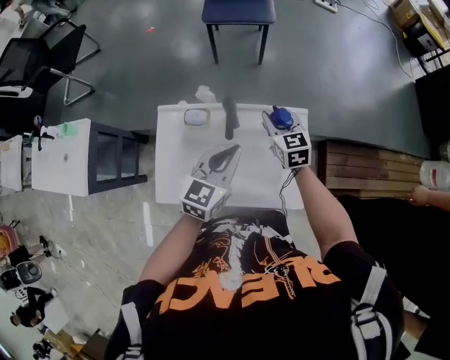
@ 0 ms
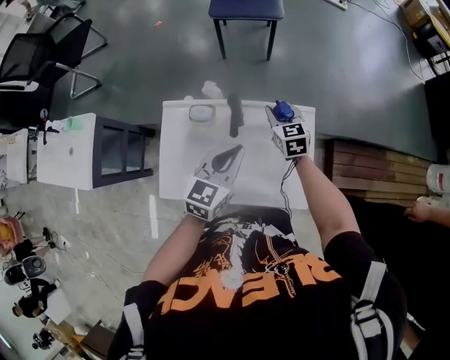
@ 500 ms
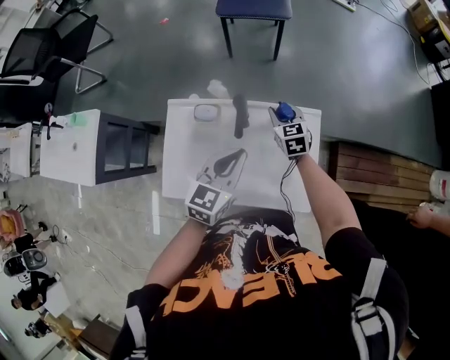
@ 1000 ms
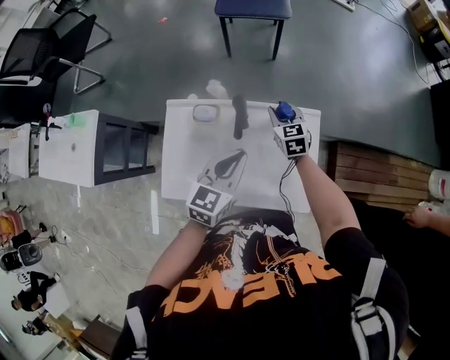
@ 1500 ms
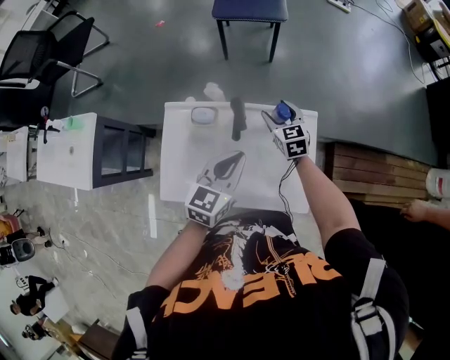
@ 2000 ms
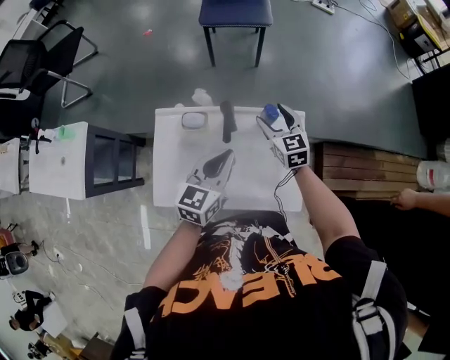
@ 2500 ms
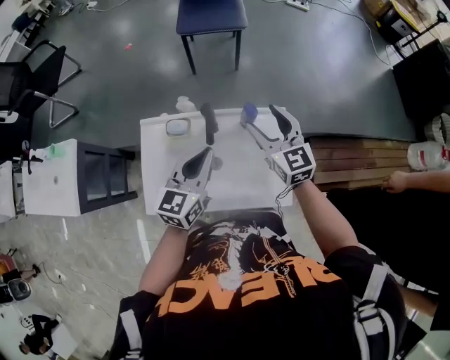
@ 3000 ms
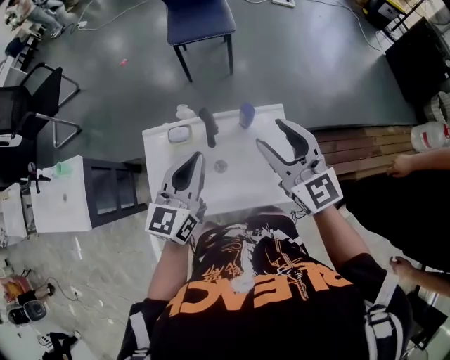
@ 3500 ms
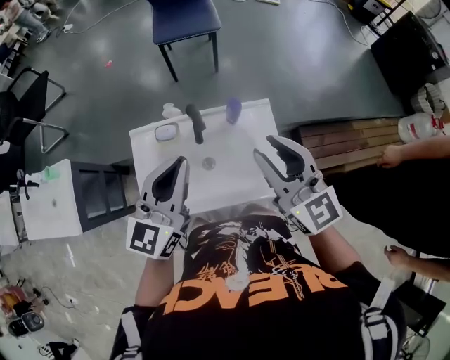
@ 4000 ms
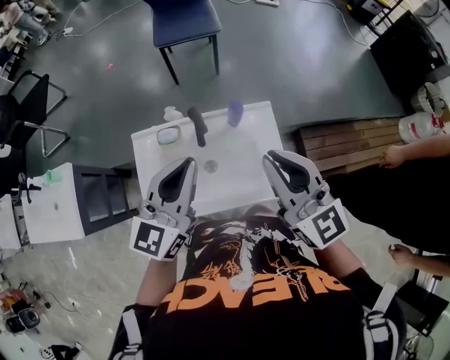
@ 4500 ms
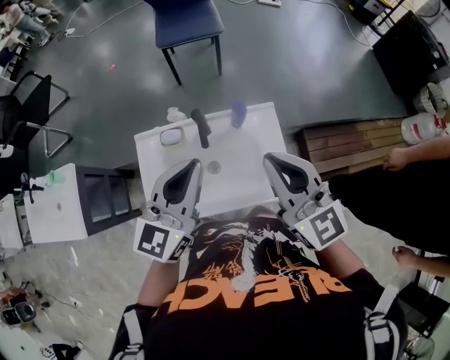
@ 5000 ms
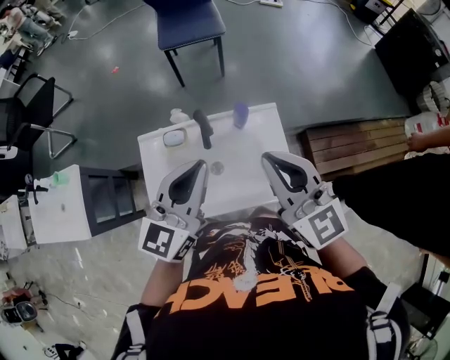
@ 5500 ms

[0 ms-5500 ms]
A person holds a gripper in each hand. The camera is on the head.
0 ms to 2000 ms: The right gripper is displaced downward by approximately 5 cm, and opens.
2000 ms to 3500 ms: The left gripper heads upward, covering approximately 10 cm; the right gripper is displaced upward and backward by approximately 30 cm, and swivels about 30 degrees.
3500 ms to 5500 ms: The left gripper heads upward, covering roughly 5 cm, while the right gripper heads backward and upward, covering roughly 10 cm, and closes up.

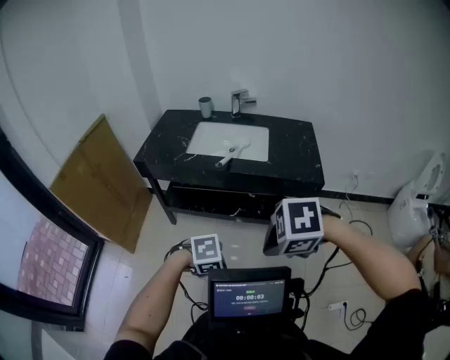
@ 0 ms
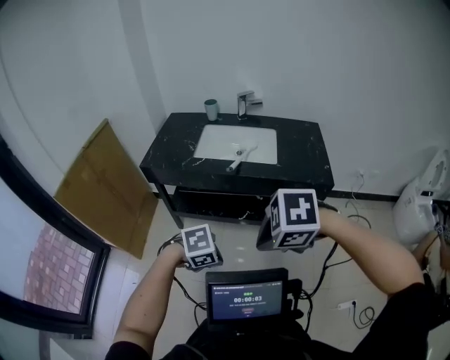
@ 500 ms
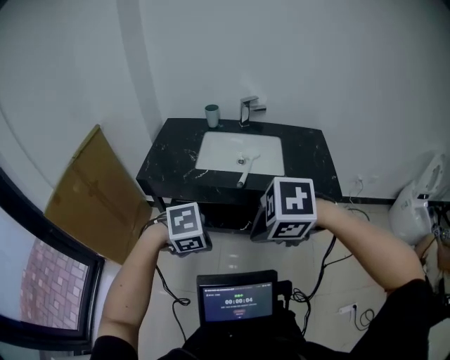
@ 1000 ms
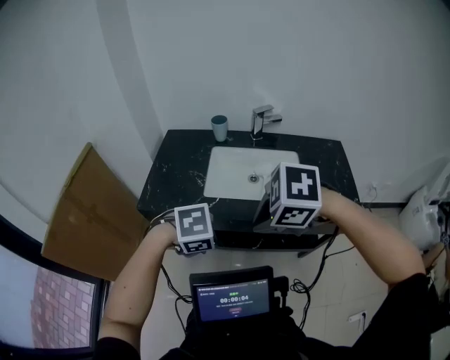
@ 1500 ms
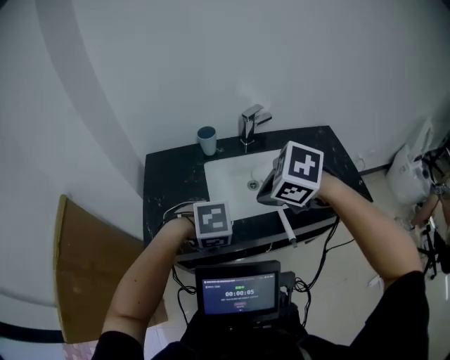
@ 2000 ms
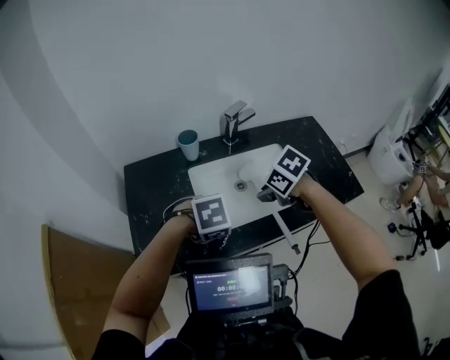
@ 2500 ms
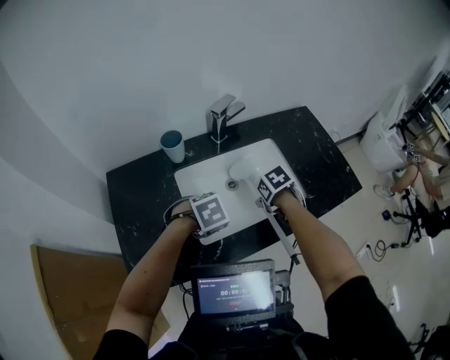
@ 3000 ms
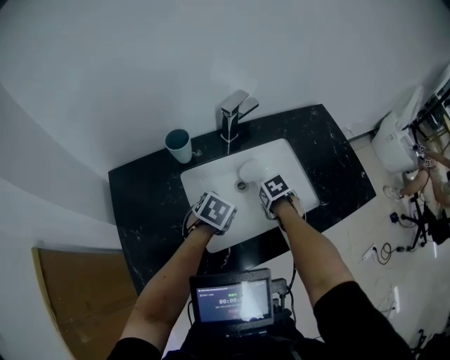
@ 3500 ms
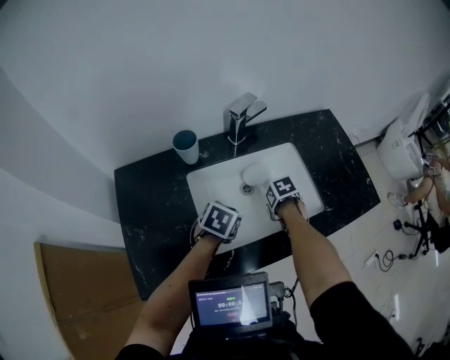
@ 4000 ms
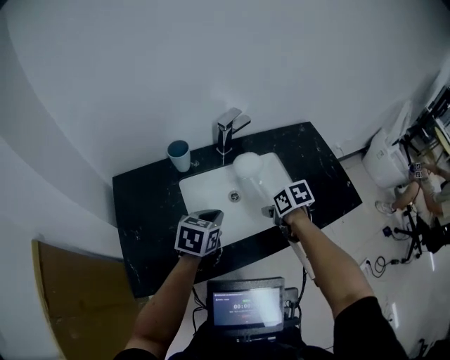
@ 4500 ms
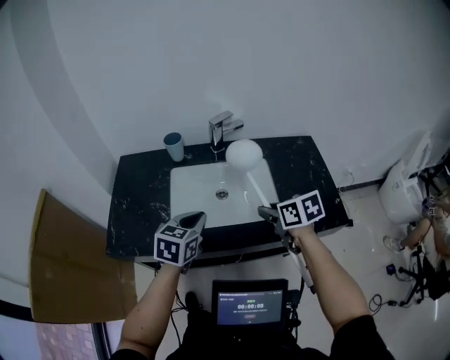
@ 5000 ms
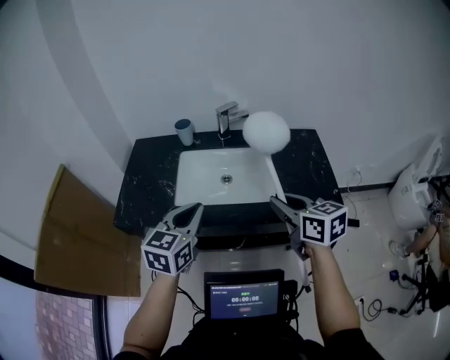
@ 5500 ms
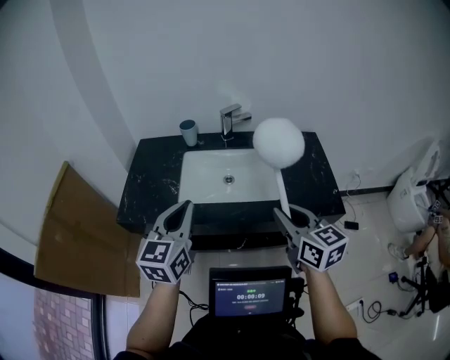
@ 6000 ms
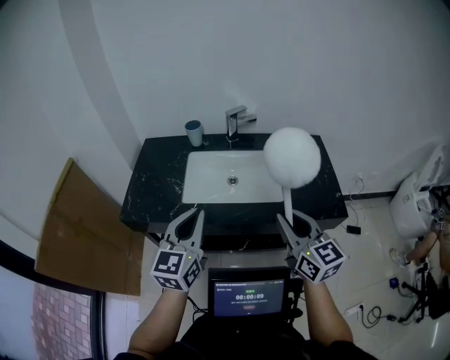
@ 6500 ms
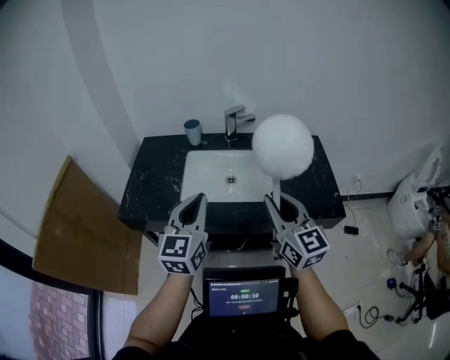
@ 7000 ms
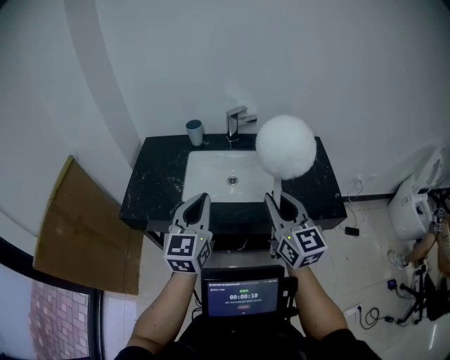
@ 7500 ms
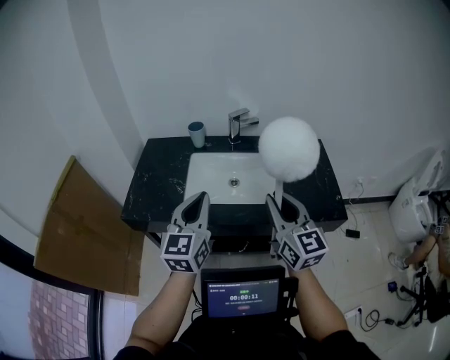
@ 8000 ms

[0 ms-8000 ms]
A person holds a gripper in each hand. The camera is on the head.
0 ms to 2000 ms: The two grippers travel together, roughly 70 cm. The left gripper changes its angle by approximately 20 degrees; the right gripper swivels about 40 degrees.
2000 ms to 4000 ms: The right gripper moves downward, about 30 cm, twists approximately 70 degrees clockwise, seen from behind, and opens and closes again. The left gripper moves some 30 cm, and rolls counterclockwise, seen from behind, by approximately 40 degrees.
4000 ms to 6000 ms: The right gripper heads upward, covering approximately 35 cm, and angles its fingers upward, by some 70 degrees. Meanwhile the left gripper changes place by about 40 cm, and angles its fingers upward, by about 50 degrees.
6000 ms to 8000 ms: The right gripper changes its angle by roughly 20 degrees.

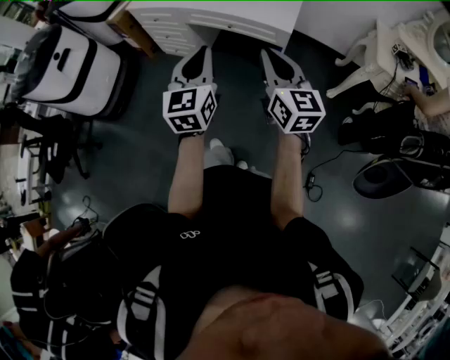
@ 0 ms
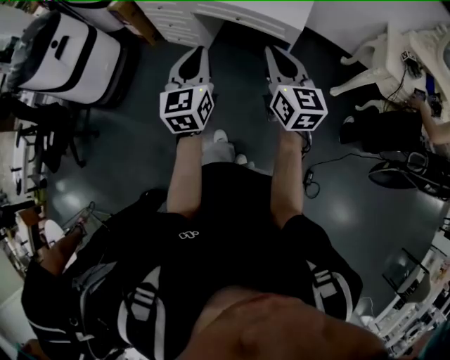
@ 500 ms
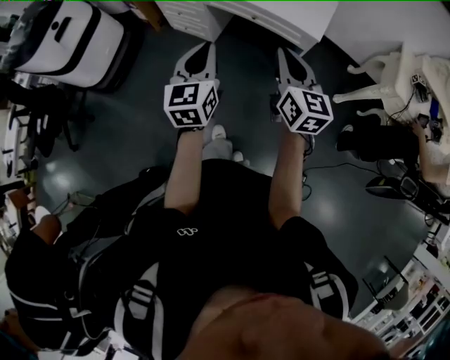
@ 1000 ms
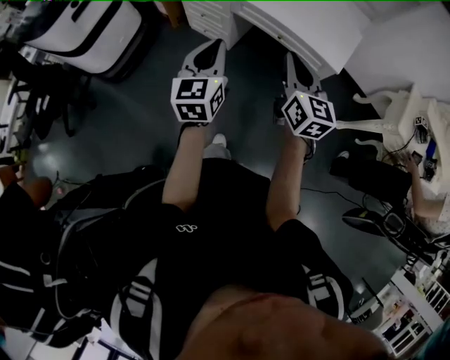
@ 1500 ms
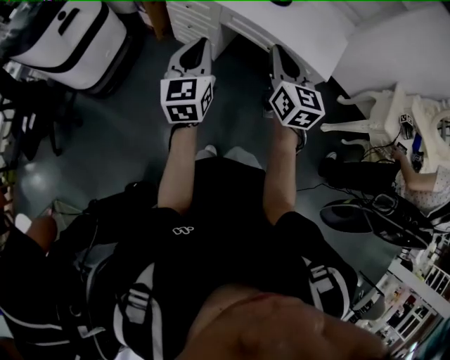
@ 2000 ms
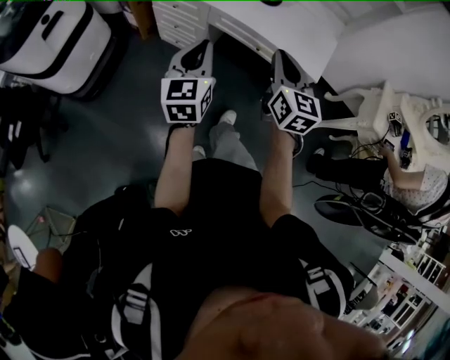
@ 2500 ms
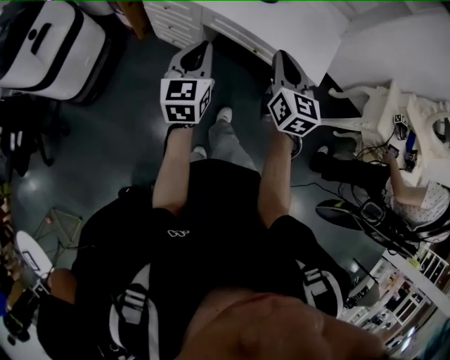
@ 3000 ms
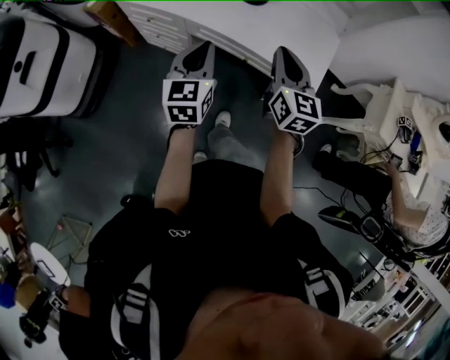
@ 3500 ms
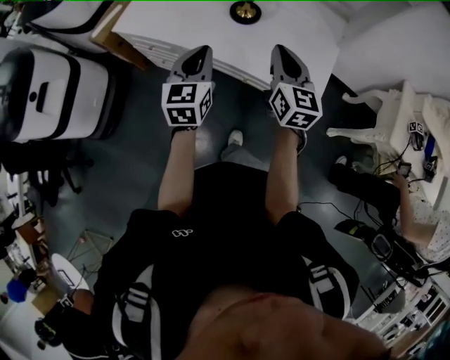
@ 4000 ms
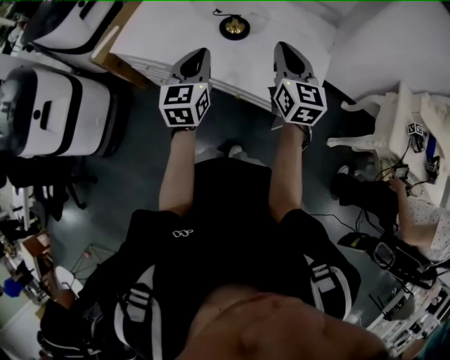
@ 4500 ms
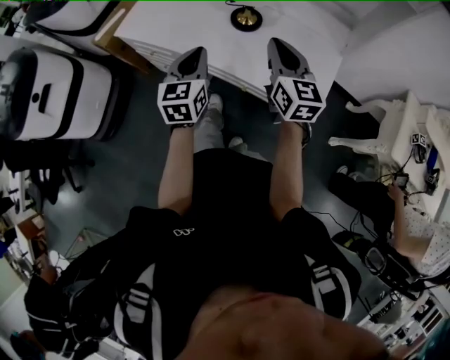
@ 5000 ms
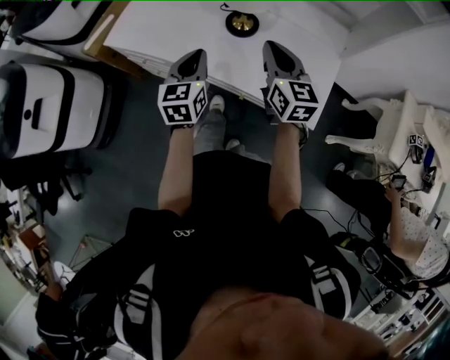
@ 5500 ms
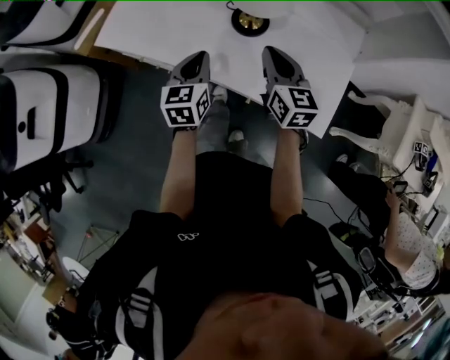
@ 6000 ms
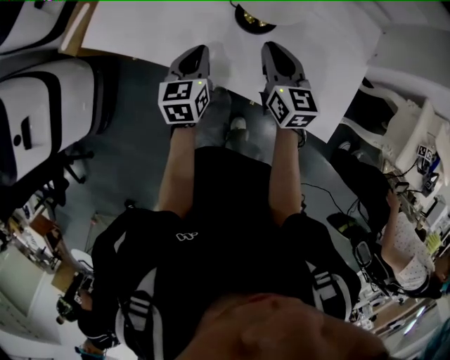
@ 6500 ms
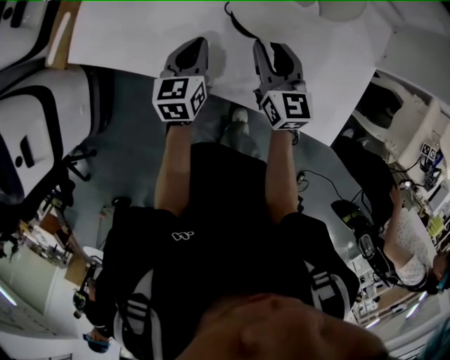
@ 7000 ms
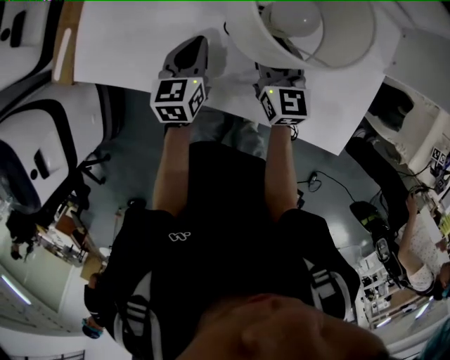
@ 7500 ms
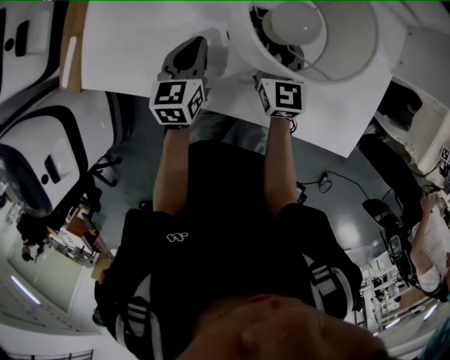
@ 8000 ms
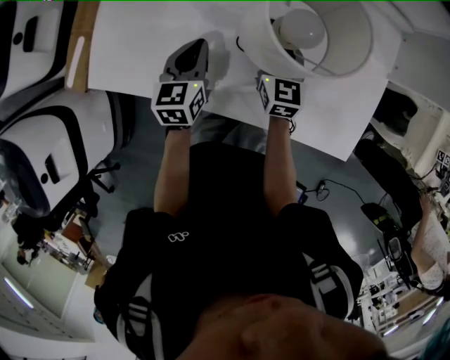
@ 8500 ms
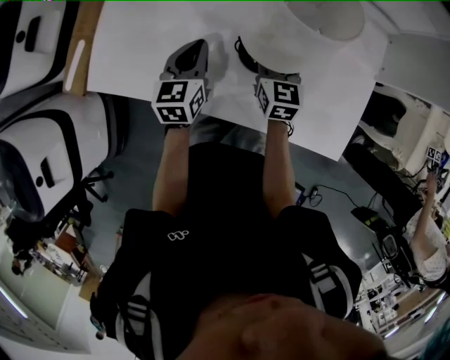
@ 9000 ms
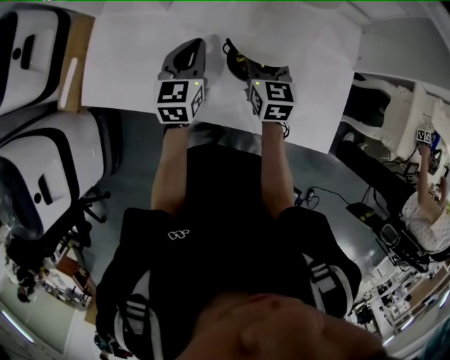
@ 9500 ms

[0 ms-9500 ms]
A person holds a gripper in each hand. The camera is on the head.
0 ms to 2000 ms: The right gripper goes approximately 30 cm forward and to the left. The left gripper heads to the left and forward, covering approximately 30 cm.
2000 ms to 4000 ms: Both grippers travel together forward and to the right, approximately 35 cm.
4000 ms to 5500 ms: The right gripper is displaced forward by about 10 cm. The left gripper travels forward and downward by roughly 10 cm.
5500 ms to 7500 ms: Both grippers move forward and downward, roughly 30 cm. The right gripper opens up.
7500 ms to 9500 ms: The left gripper is displaced upward by some 10 cm.

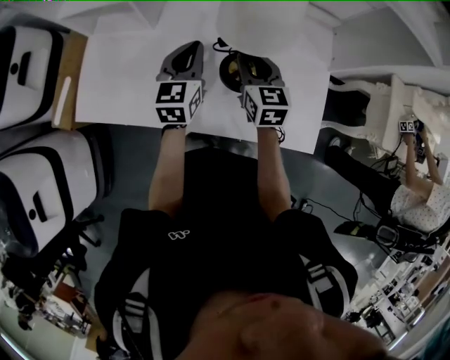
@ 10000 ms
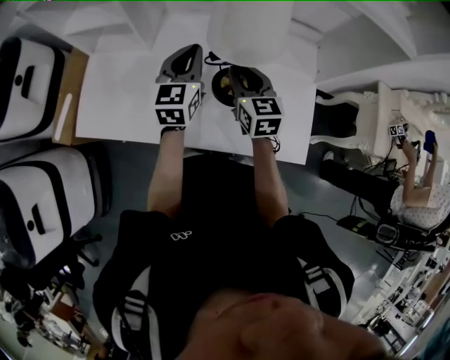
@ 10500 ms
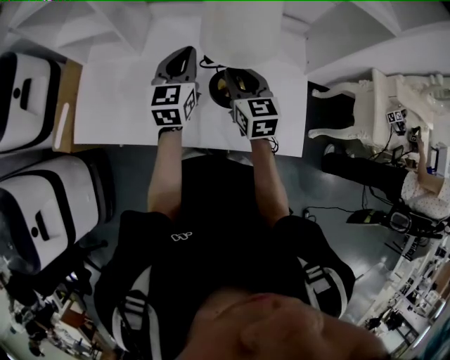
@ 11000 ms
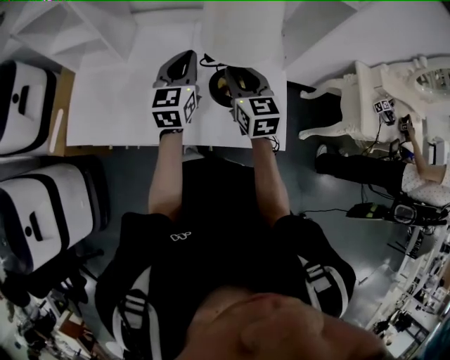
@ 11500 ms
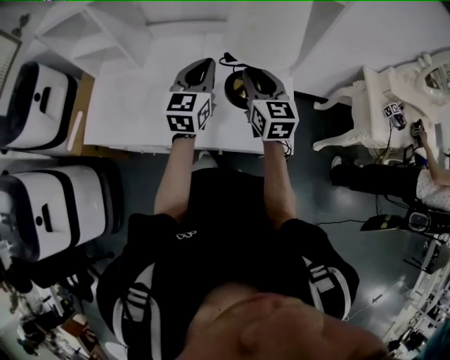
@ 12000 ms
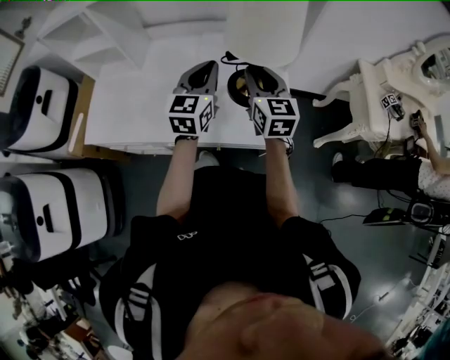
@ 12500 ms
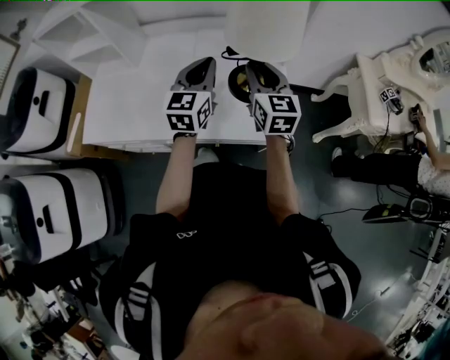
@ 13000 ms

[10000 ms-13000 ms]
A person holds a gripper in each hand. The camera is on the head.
10000 ms to 11500 ms: The left gripper moves to the right and upward, roughly 15 cm. Meanwhile the right gripper heads to the right, upward and backward, covering roughly 20 cm.
11500 ms to 13000 ms: Both grippers move to the right and backward, roughly 10 cm.
